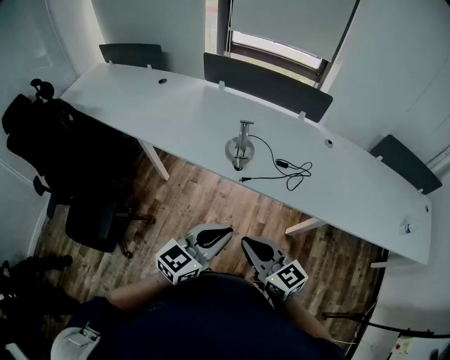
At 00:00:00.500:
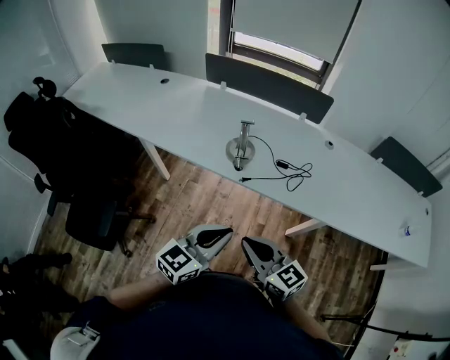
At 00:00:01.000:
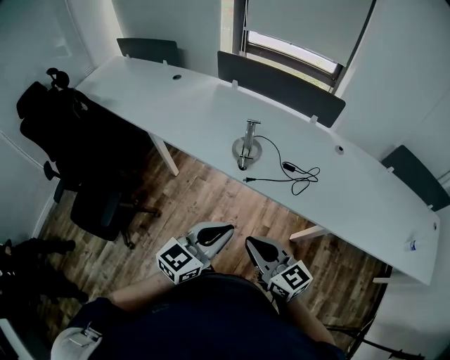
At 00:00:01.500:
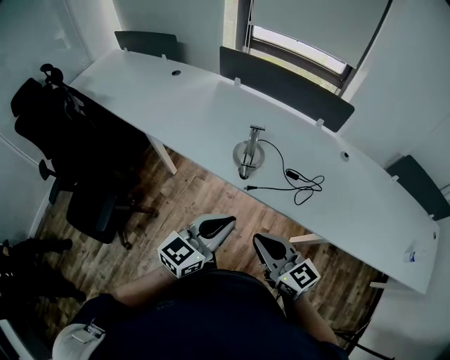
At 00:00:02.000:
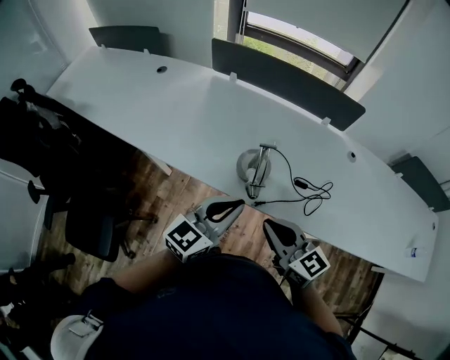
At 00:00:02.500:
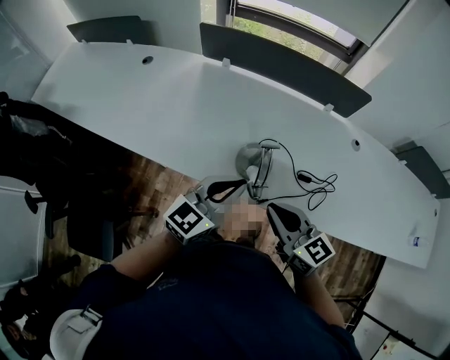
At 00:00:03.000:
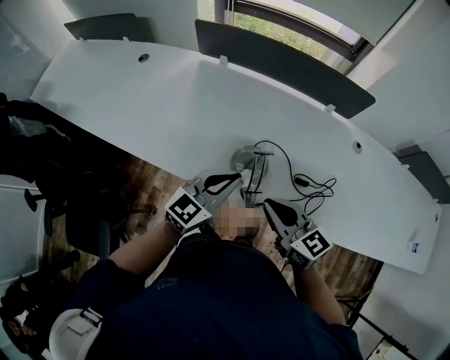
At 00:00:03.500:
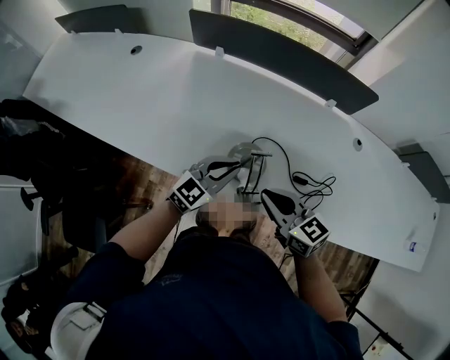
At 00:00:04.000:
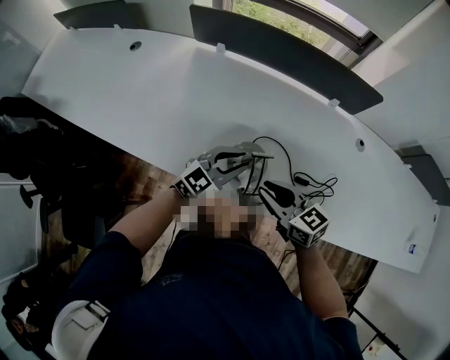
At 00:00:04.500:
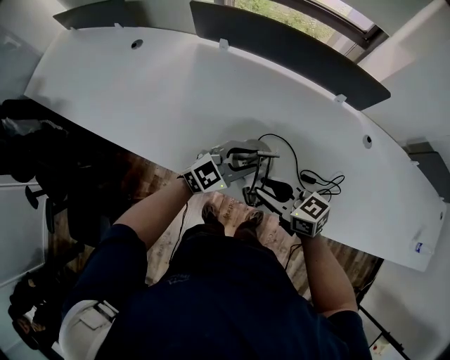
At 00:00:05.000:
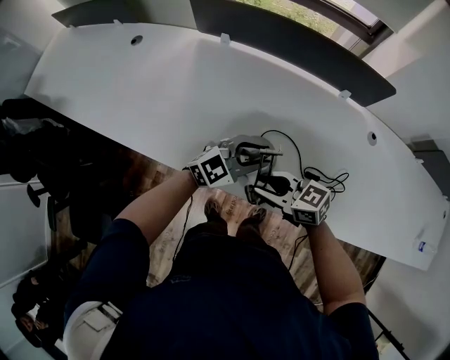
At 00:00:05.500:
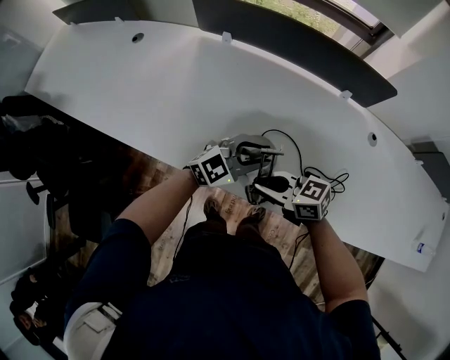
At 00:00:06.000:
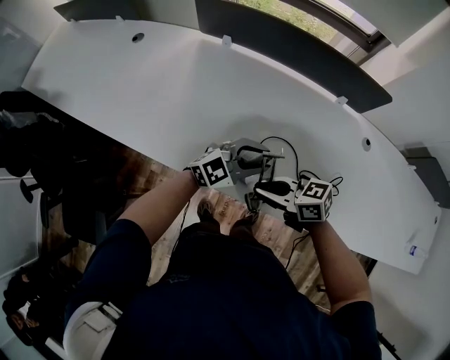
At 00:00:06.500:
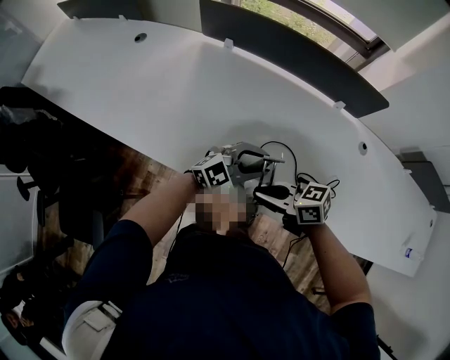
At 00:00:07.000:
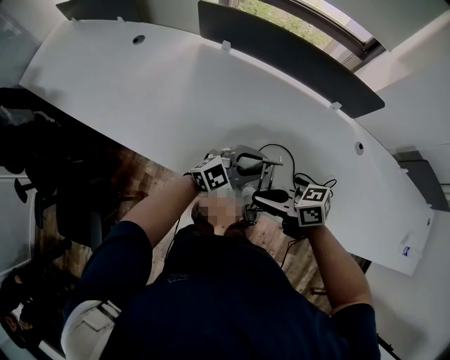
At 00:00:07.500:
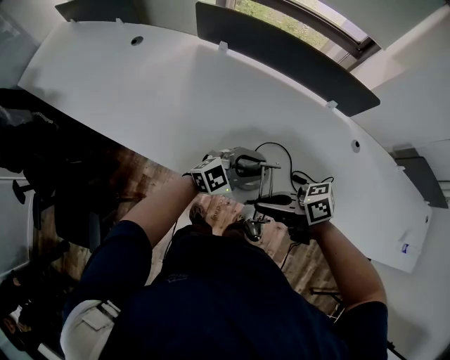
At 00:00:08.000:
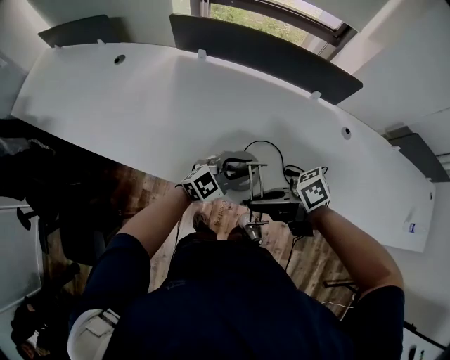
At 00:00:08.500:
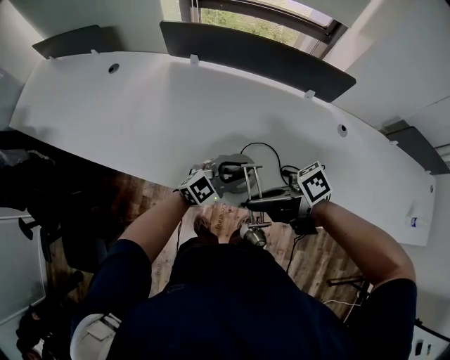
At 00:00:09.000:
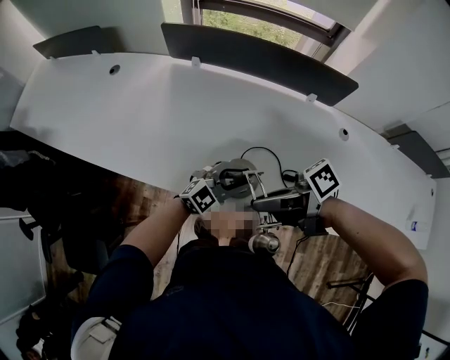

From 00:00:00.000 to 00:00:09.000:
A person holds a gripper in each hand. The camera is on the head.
From 00:00:00.000 to 00:00:02.000: Both grippers move forward, about 25 cm.
From 00:00:02.000 to 00:00:04.500: The left gripper ends up some 25 cm from where it was, turns by about 30 degrees, and opens its fingers. Meanwhile the right gripper moves about 20 cm, rotates roughly 20 degrees, and opens its fingers.
From 00:00:04.500 to 00:00:07.000: The right gripper changes its angle by about 20 degrees, and closes up.
From 00:00:07.000 to 00:00:09.000: The right gripper travels upward by some 10 cm, and swivels some 40 degrees.

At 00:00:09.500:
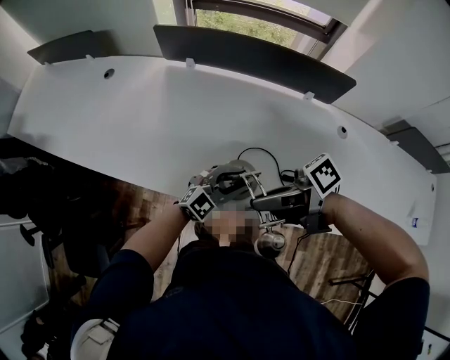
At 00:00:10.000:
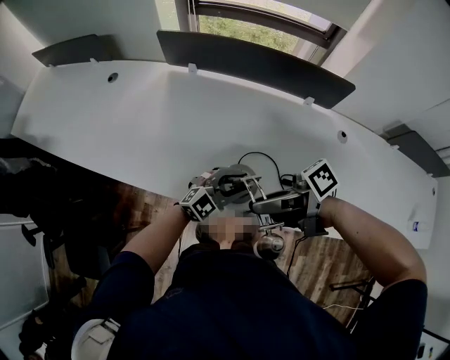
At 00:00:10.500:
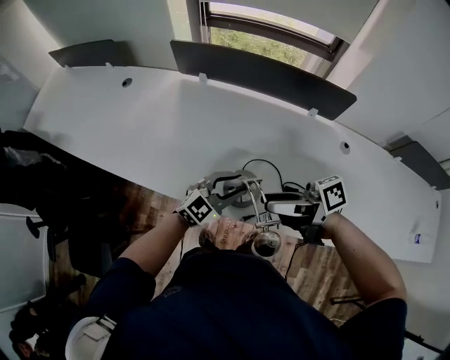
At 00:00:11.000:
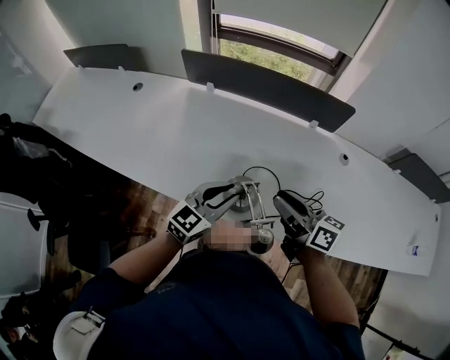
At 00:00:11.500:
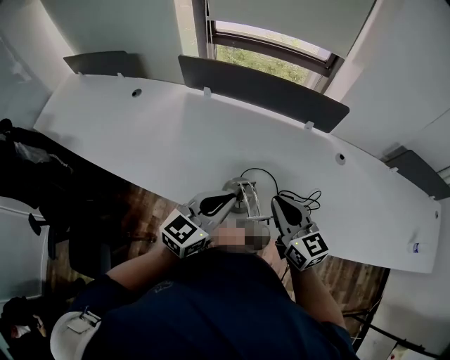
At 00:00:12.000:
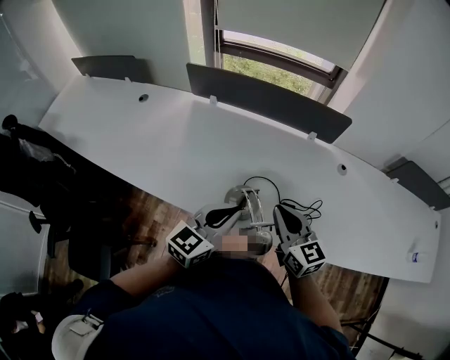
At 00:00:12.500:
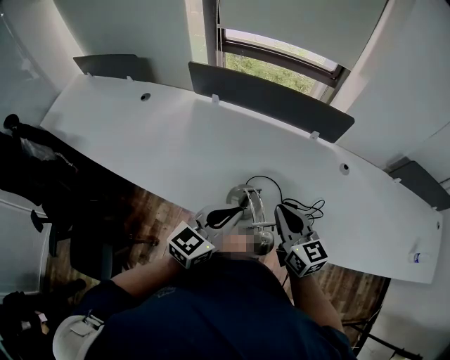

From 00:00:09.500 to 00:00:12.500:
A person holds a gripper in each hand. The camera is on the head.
From 00:00:09.500 to 00:00:11.000: The right gripper changes place by approximately 10 cm, changes its angle by about 60 degrees, and opens, then closes again. The left gripper travels upward by some 10 cm, and turns by roughly 30 degrees.
From 00:00:11.000 to 00:00:12.500: The left gripper changes place by approximately 5 cm, and closes up. Meanwhile the right gripper turns by approximately 40 degrees, and closes.
